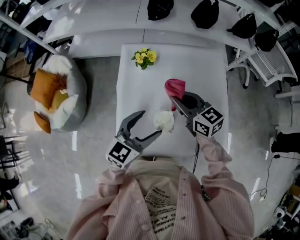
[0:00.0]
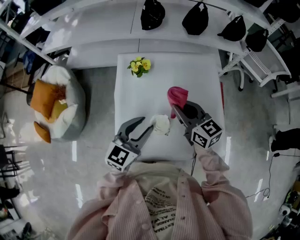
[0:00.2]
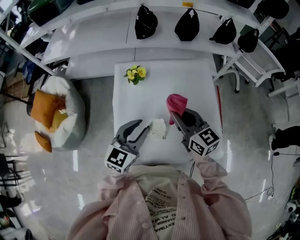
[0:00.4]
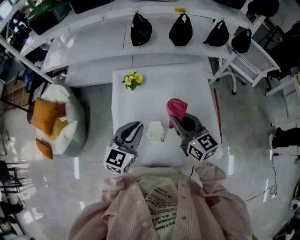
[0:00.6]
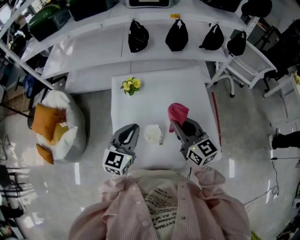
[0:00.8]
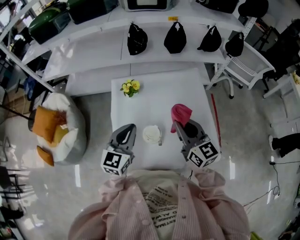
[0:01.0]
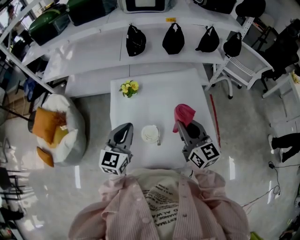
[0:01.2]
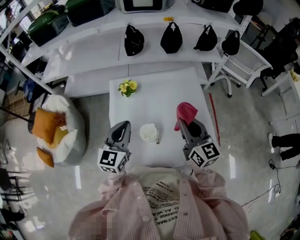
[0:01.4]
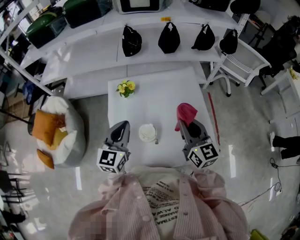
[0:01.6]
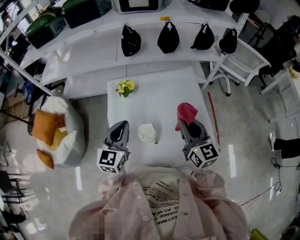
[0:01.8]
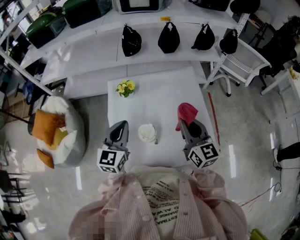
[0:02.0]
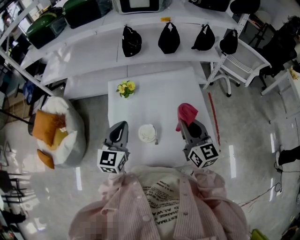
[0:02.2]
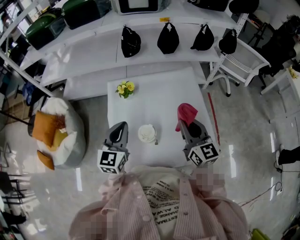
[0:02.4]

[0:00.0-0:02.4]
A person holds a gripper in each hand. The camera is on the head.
0.0 to 1.2 s: The left gripper travels upward by some 5 cm, and closes. The right gripper is displaced to the right, upward and backward by approximately 15 cm, and changes its angle by approximately 30 degrees.
1.2 to 2.4 s: The grippers stay close to where they were, moving slightly.

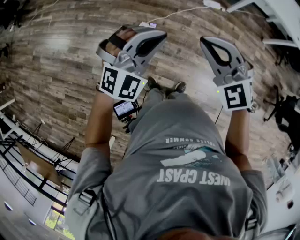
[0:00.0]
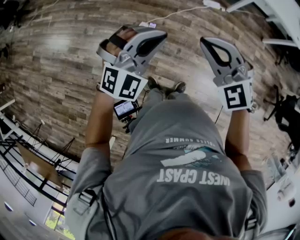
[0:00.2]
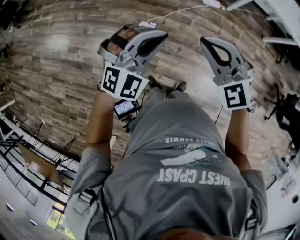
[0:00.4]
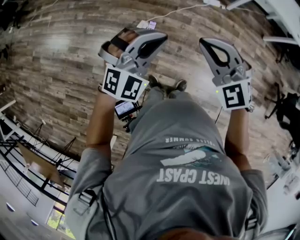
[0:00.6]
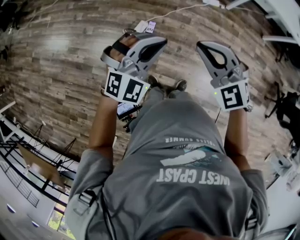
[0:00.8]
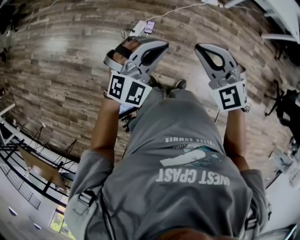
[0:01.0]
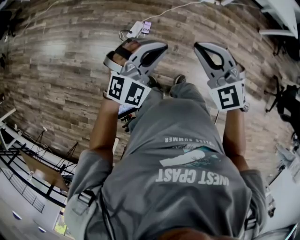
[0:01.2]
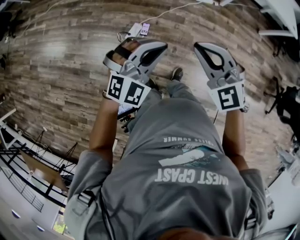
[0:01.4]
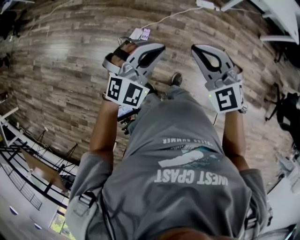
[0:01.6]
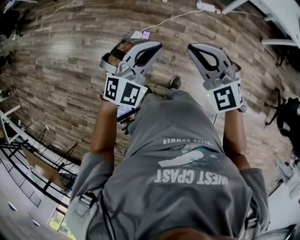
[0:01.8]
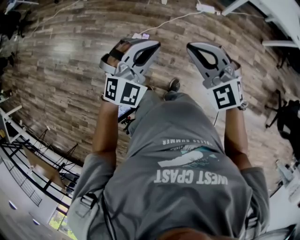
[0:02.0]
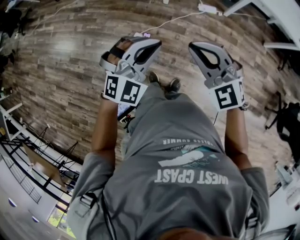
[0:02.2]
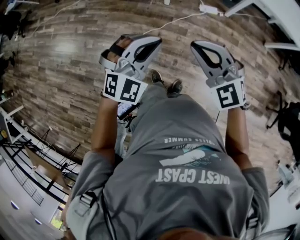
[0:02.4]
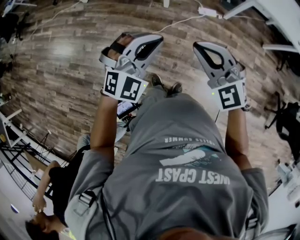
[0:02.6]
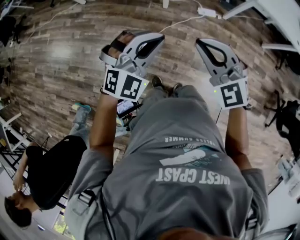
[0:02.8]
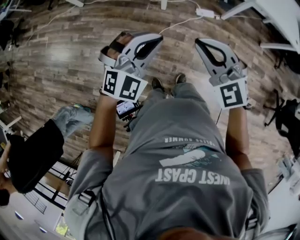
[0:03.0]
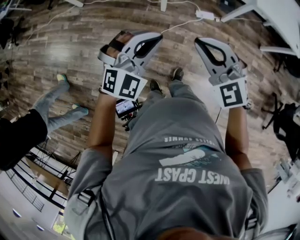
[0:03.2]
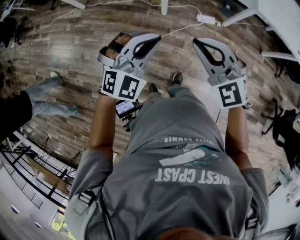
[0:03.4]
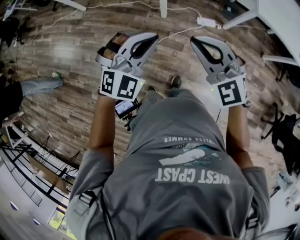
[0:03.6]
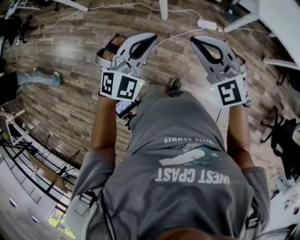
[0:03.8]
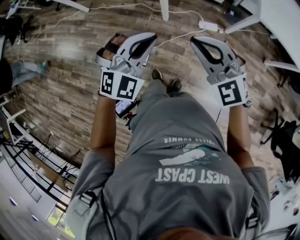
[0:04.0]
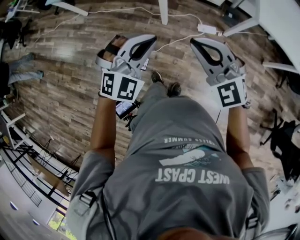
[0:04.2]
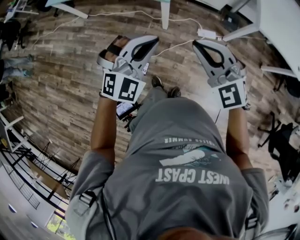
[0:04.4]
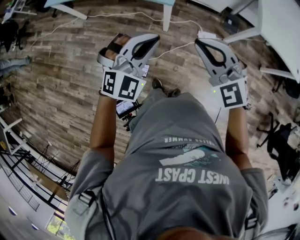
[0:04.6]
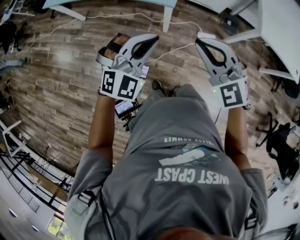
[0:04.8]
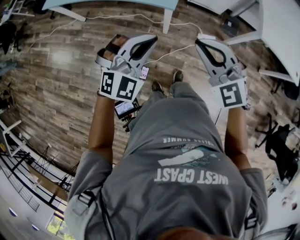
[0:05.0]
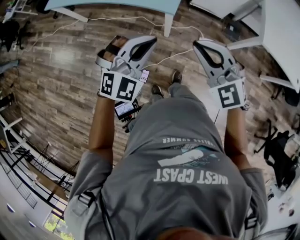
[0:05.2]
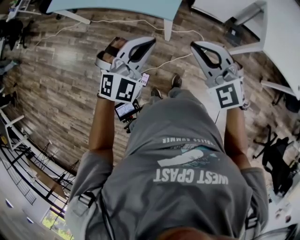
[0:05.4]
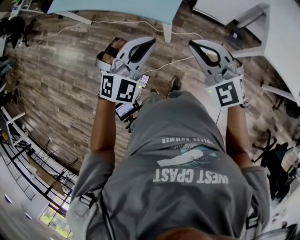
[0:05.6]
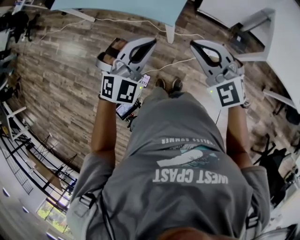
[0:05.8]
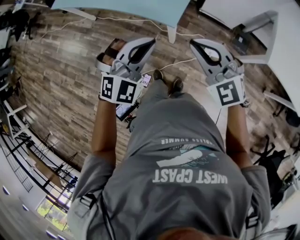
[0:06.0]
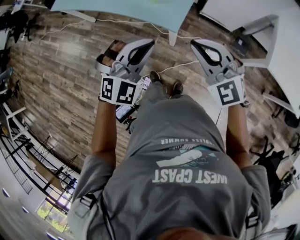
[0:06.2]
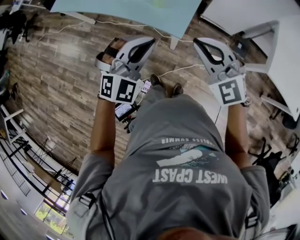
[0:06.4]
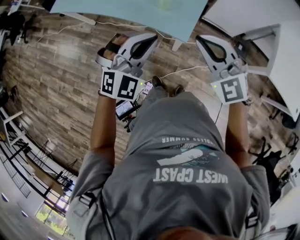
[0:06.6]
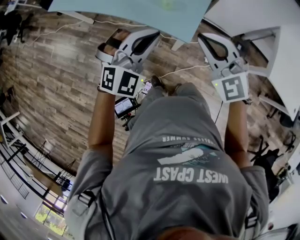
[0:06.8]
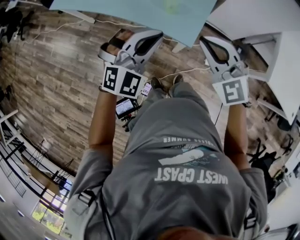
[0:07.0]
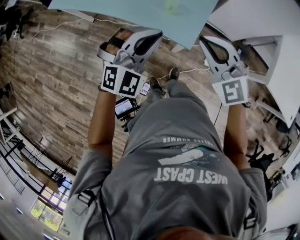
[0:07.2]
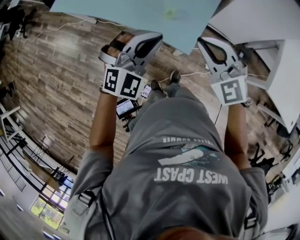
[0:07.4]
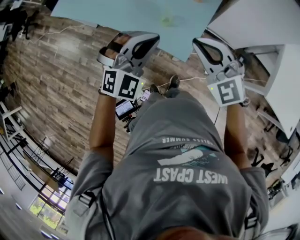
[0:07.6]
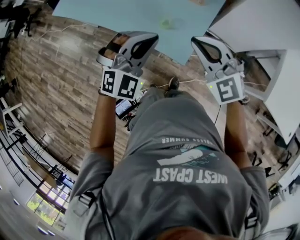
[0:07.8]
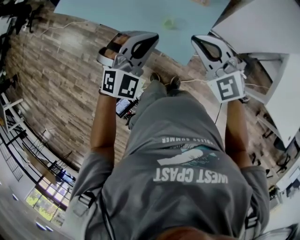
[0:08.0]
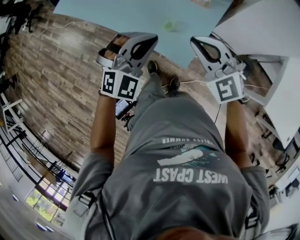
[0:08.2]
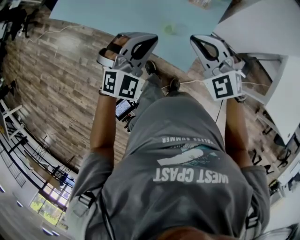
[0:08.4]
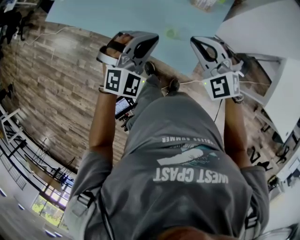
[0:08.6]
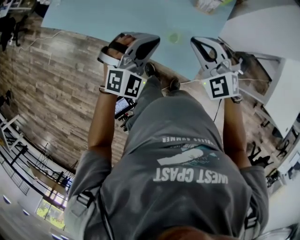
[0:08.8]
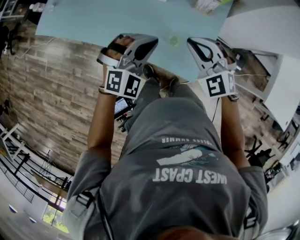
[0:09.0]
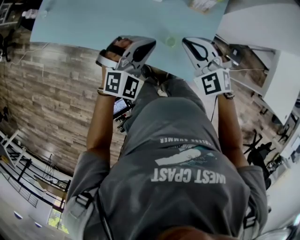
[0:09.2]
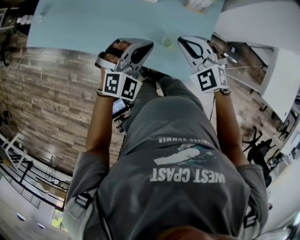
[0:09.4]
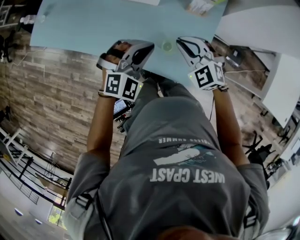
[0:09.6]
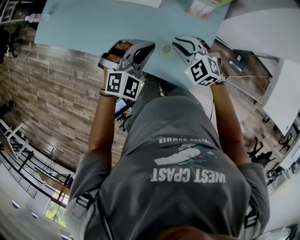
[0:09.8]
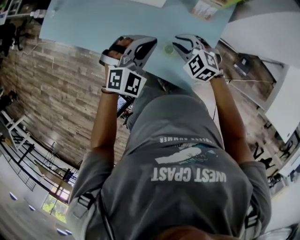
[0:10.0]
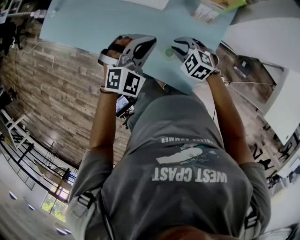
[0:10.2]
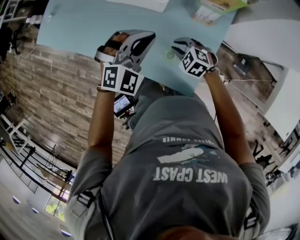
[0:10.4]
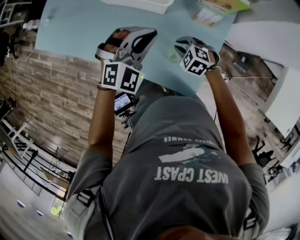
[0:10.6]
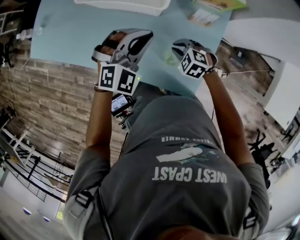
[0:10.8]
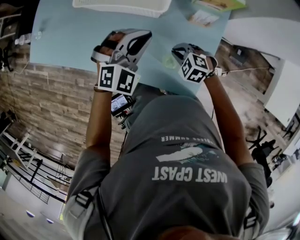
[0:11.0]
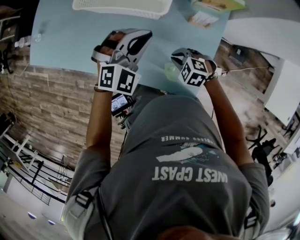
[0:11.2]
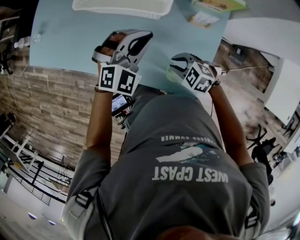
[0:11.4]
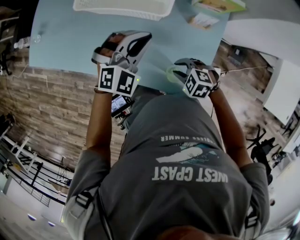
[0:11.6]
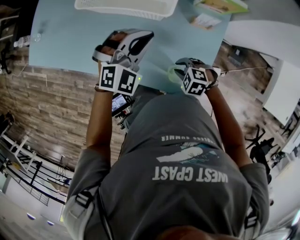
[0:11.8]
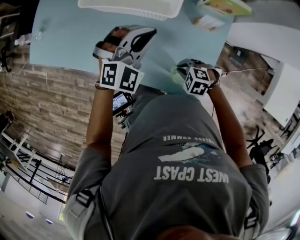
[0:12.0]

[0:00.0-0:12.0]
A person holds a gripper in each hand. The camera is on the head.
0.0 to 1.6 s: The grippers both shift to the right by about 5 cm.
1.6 to 3.0 s: Both grippers travel together forward, roughly 20 cm.
3.0 to 4.4 s: The grippers both shift forward by approximately 20 cm.
4.4 to 6.0 s: The two grippers go approximately 20 cm forward.
6.0 to 7.6 s: The grippers both shift forward by some 20 cm.
7.6 to 9.0 s: The two grippers go approximately 20 cm forward, downward and to the left.
9.0 to 10.4 s: The right gripper travels downward and forward by some 20 cm, and swivels some 30 degrees, while the left gripper travels forward by about 10 cm.
10.4 to 12.0 s: The right gripper ends up roughly 5 cm from where it was. Meanwhile the left gripper changes place by approximately 10 cm.

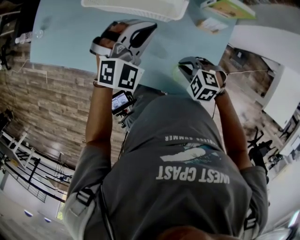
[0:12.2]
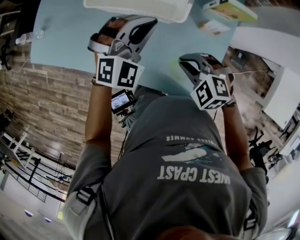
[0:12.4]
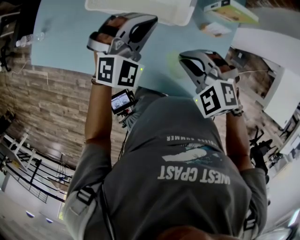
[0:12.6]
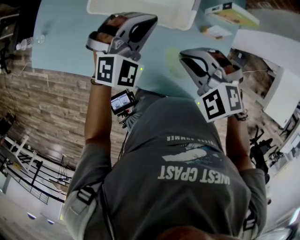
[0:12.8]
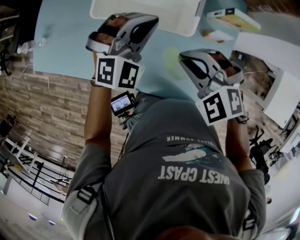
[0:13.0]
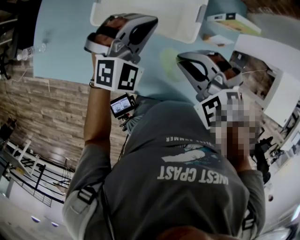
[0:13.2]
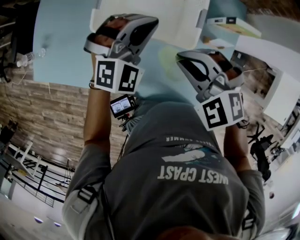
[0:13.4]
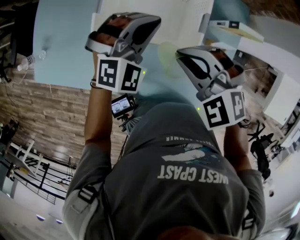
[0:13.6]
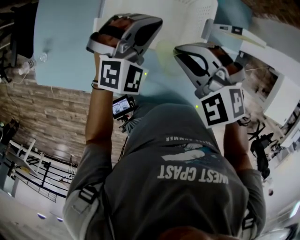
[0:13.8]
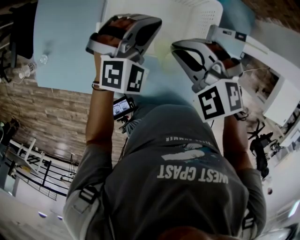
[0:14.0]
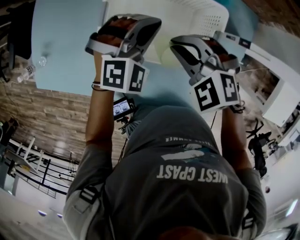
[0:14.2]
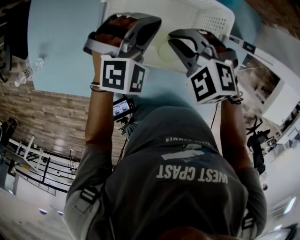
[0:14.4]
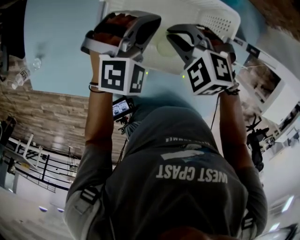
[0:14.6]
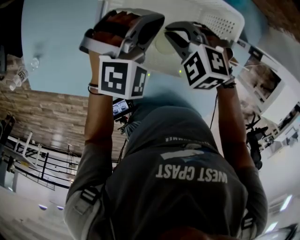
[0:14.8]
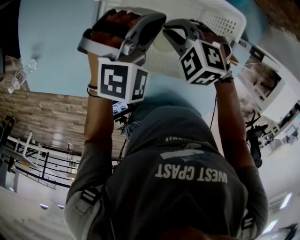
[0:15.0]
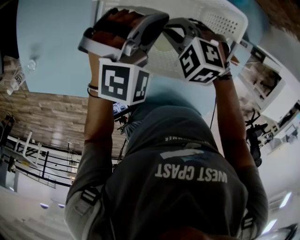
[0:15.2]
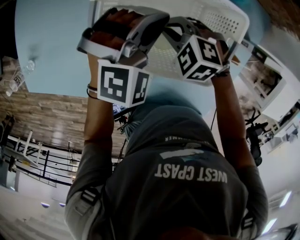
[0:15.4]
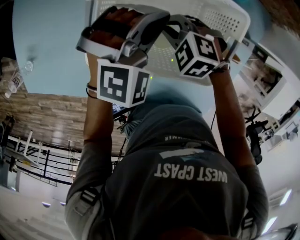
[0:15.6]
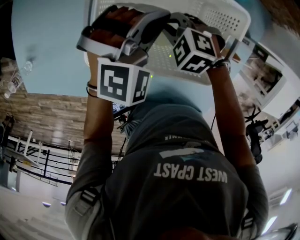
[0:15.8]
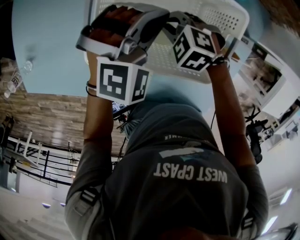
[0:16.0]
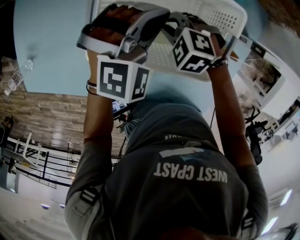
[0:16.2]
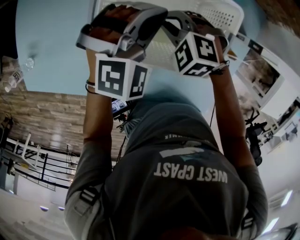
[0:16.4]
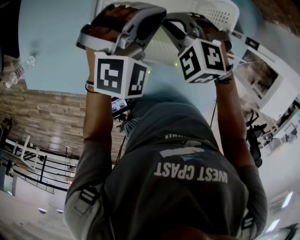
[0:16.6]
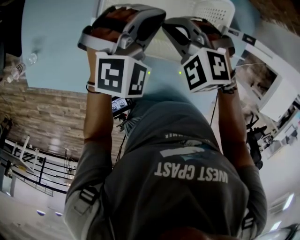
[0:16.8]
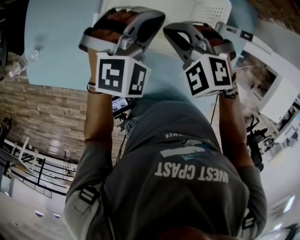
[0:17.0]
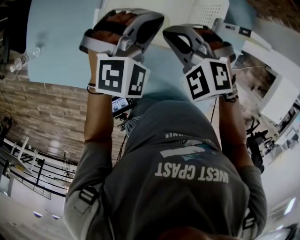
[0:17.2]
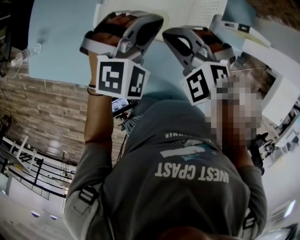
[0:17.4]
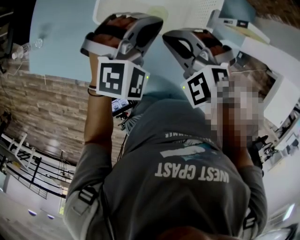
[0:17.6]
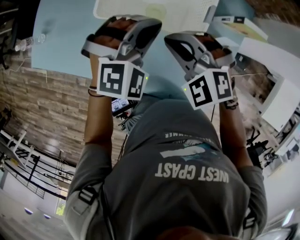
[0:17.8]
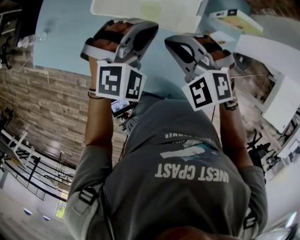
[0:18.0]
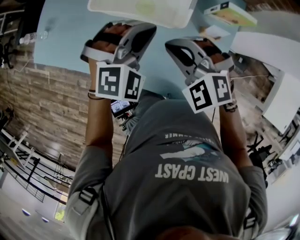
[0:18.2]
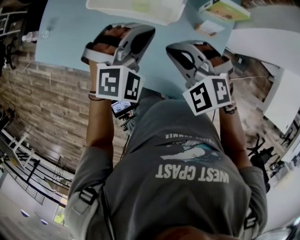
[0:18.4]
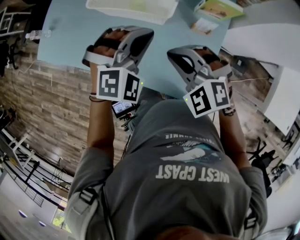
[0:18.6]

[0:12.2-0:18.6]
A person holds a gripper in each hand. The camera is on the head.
12.2 to 13.8 s: The right gripper heads forward and upward, covering roughly 30 cm, and changes its angle by roughly 20 degrees. The left gripper moves forward, roughly 15 cm.
13.8 to 15.4 s: The right gripper heads downward and forward, covering about 20 cm. The left gripper heads downward and forward, covering about 10 cm.
15.4 to 17.0 s: The left gripper heads upward, covering approximately 5 cm; the right gripper is displaced upward by some 10 cm.
17.0 to 18.6 s: The left gripper goes roughly 25 cm backward; the right gripper is displaced backward and to the right by roughly 30 cm.

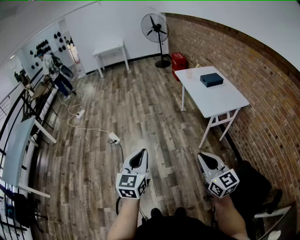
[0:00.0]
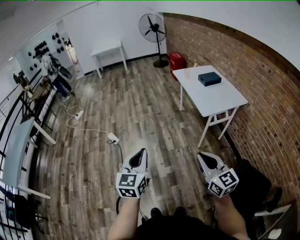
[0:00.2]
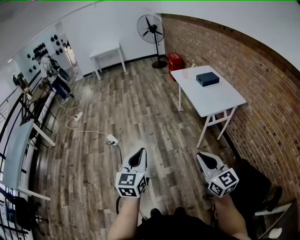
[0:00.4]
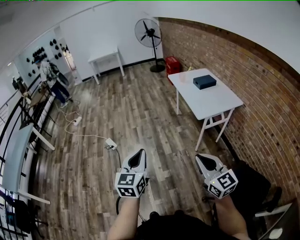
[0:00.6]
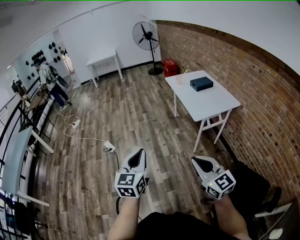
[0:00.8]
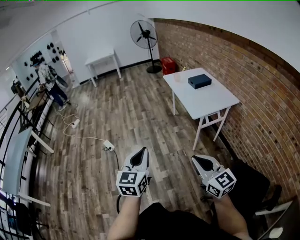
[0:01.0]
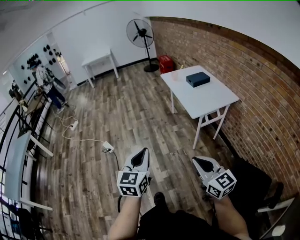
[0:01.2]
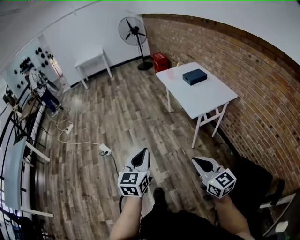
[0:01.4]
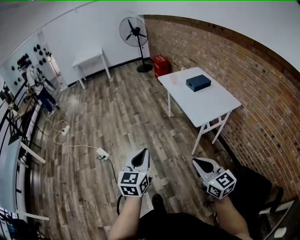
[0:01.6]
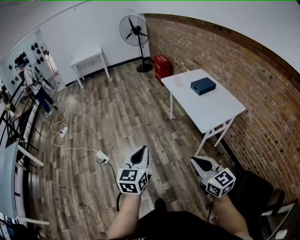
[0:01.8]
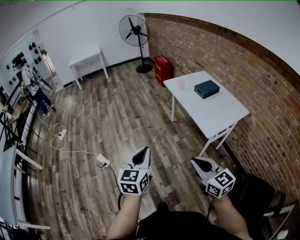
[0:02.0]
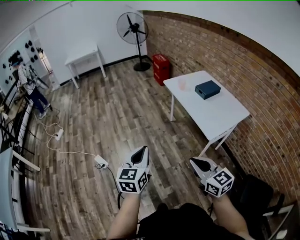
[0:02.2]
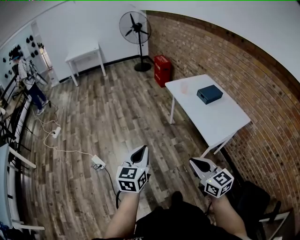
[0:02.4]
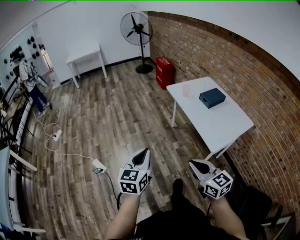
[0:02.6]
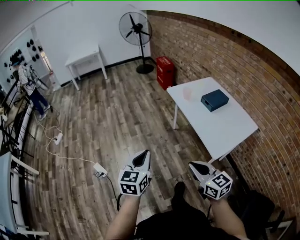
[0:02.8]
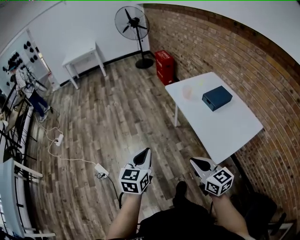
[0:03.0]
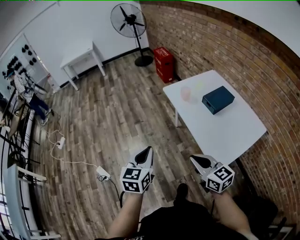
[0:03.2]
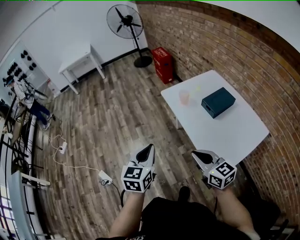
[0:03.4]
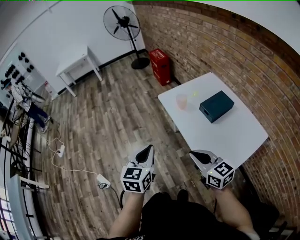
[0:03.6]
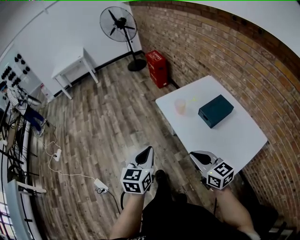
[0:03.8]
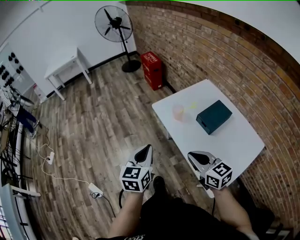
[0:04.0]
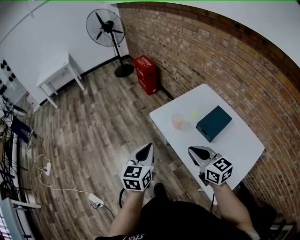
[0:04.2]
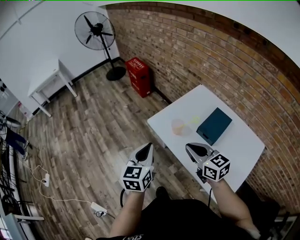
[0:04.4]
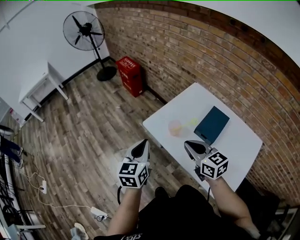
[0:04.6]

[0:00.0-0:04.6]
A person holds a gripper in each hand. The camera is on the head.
0.0 to 1.6 s: The left gripper heads forward and to the right, covering about 15 cm. The right gripper heads forward, covering some 10 cm.
1.6 to 3.0 s: The two grippers go about 40 cm forward.
3.0 to 4.6 s: The two grippers travel together, forward, some 50 cm.
